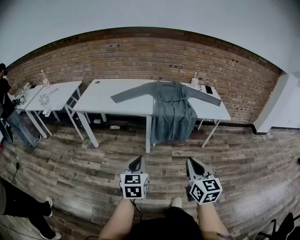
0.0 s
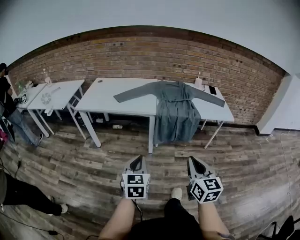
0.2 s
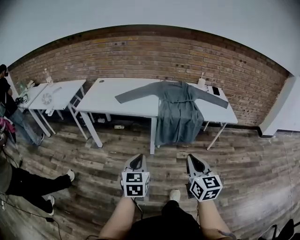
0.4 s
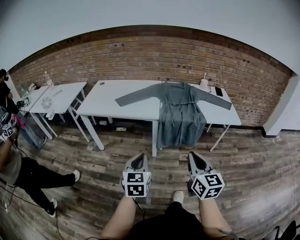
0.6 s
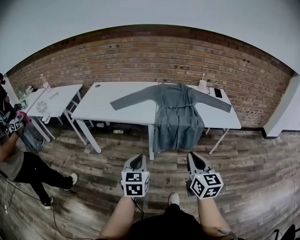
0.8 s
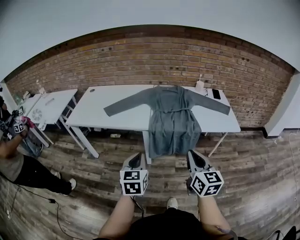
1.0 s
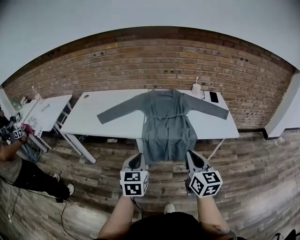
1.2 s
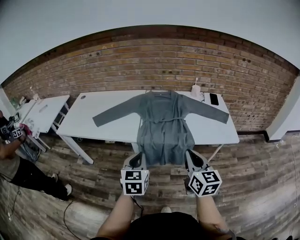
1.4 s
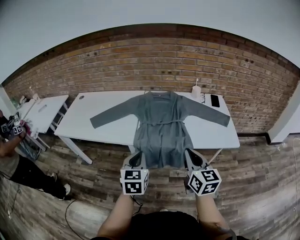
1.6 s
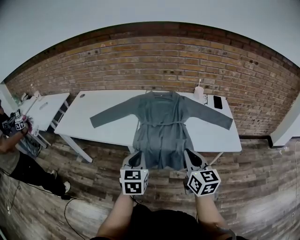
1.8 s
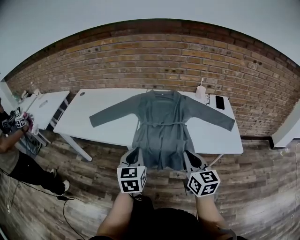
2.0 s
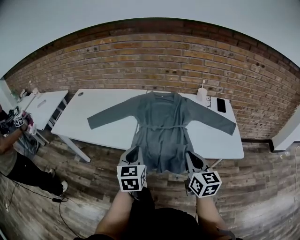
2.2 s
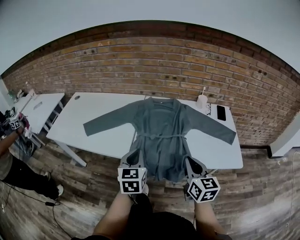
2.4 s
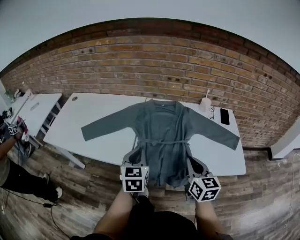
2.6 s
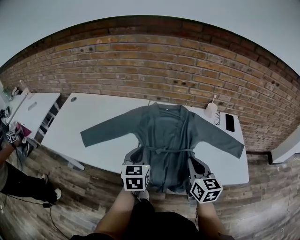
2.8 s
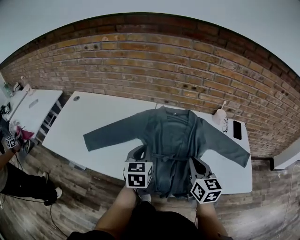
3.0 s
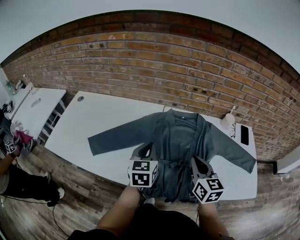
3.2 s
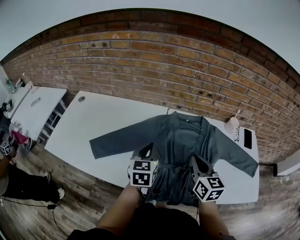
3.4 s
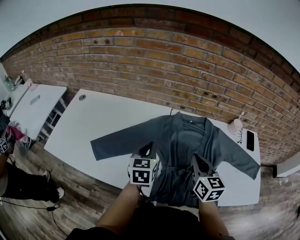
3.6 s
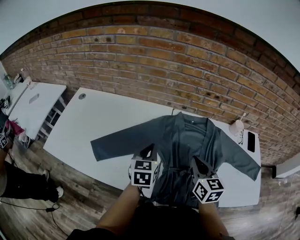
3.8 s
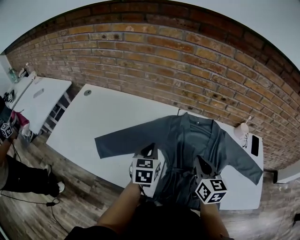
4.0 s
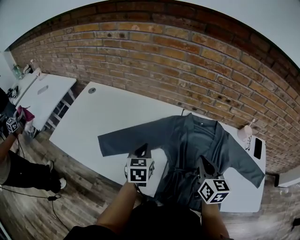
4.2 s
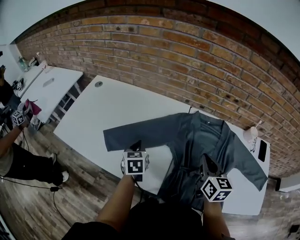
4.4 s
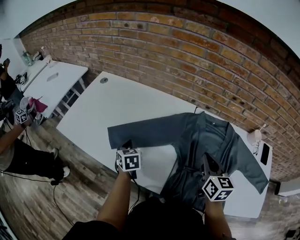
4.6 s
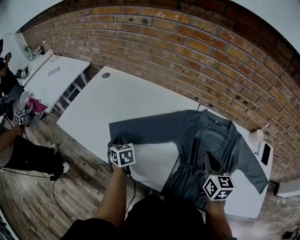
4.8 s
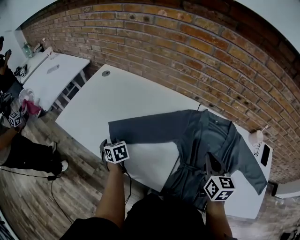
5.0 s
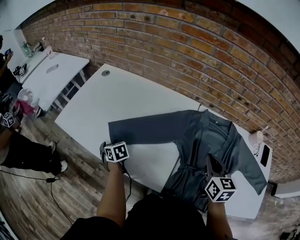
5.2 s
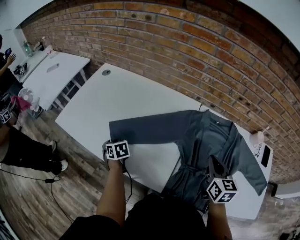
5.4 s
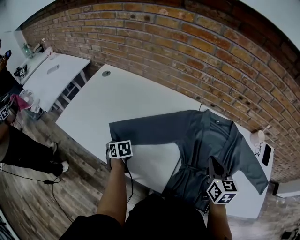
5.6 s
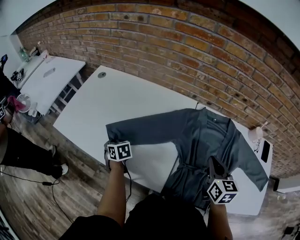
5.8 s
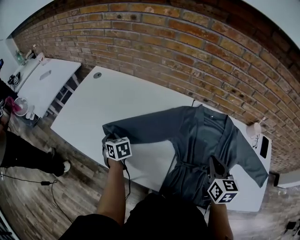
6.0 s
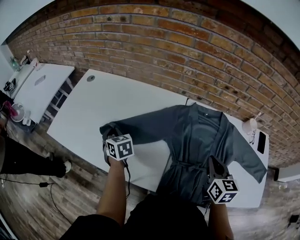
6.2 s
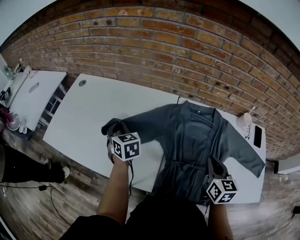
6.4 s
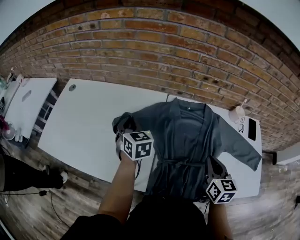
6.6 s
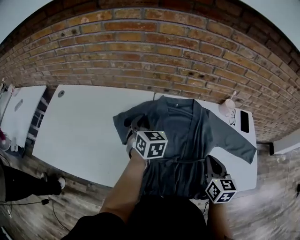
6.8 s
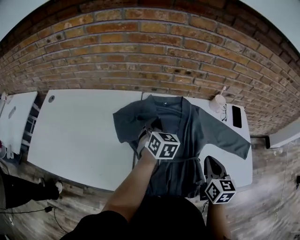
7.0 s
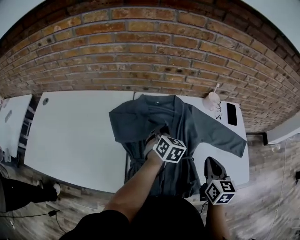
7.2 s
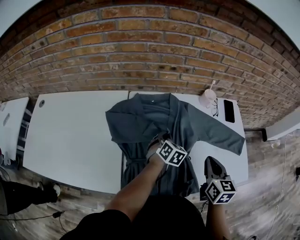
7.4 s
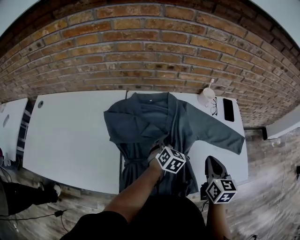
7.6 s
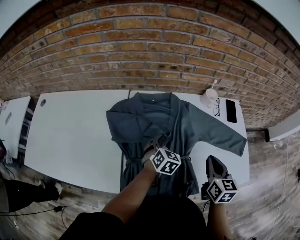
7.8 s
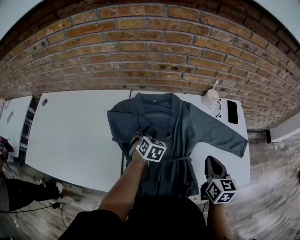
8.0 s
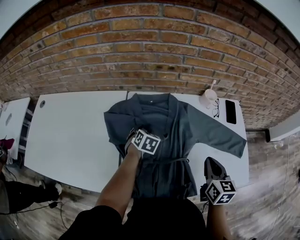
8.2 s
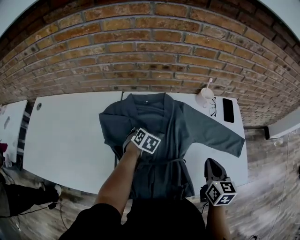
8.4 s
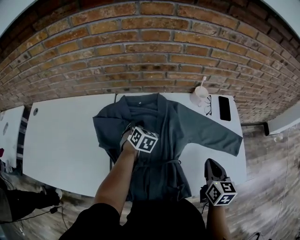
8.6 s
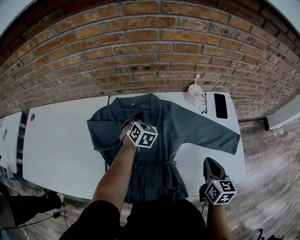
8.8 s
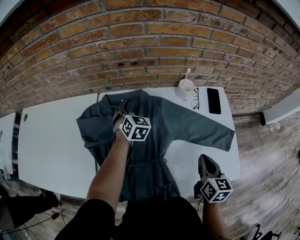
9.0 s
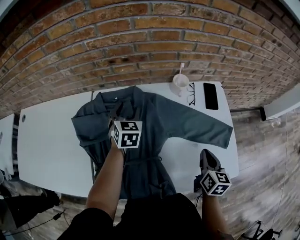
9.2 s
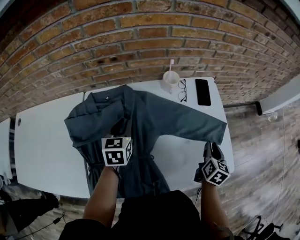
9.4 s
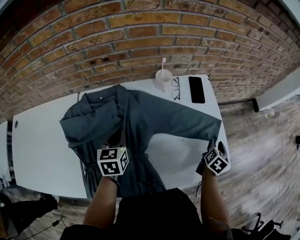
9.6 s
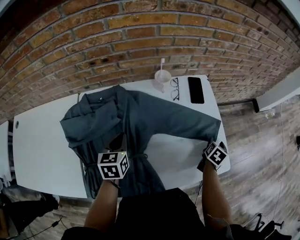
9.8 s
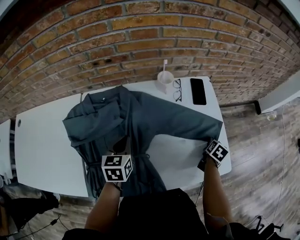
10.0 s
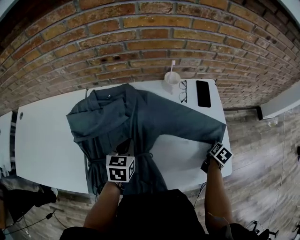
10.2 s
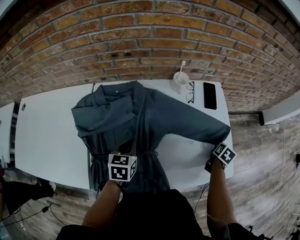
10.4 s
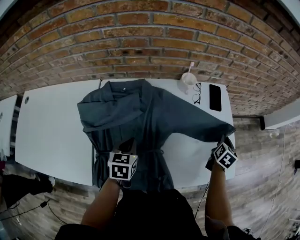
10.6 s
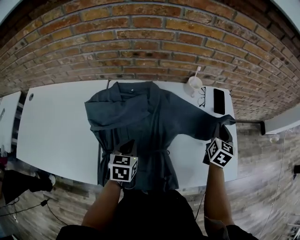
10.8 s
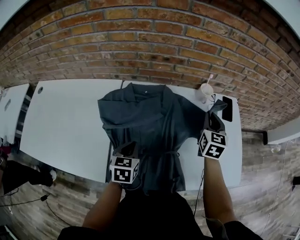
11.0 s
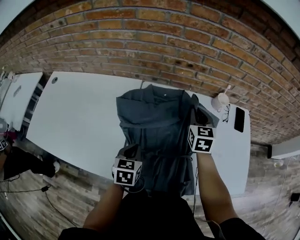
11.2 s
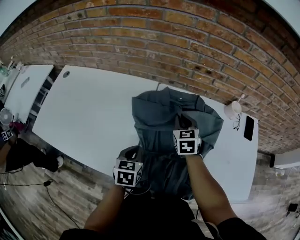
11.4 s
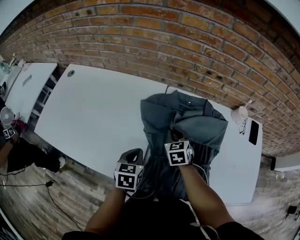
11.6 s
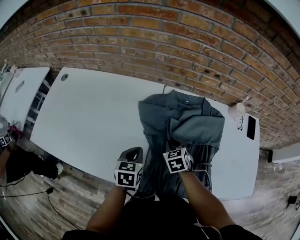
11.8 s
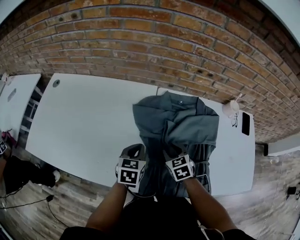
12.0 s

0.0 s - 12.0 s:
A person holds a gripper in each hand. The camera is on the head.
0.0 s - 1.6 s: The grippers both shift forward and to the right by approximately 40 cm.
1.6 s - 3.0 s: Both grippers travel together forward, approximately 30 cm.
3.0 s - 4.4 s: The left gripper moves to the left, downward and forward, approximately 25 cm, and turns by approximately 20 degrees; the right gripper goes roughly 15 cm forward and to the left.
4.4 s - 6.0 s: The left gripper heads to the left, covering approximately 15 cm, rotates approximately 30 degrees, and opens and closes again.
6.0 s - 7.6 s: The left gripper goes upward and returns, approximately 15 cm each way, turns by roughly 70 degrees, and opens its fingers. The right gripper changes place by roughly 25 cm, and turns by about 20 degrees.
7.6 s - 9.0 s: The left gripper shifts some 15 cm forward, turns by about 20 degrees, and closes and opens again; the right gripper moves to the right, some 10 cm.
9.0 s - 10.4 s: The right gripper changes place by some 25 cm, changes its angle by about 40 degrees, and opens, then closes again. Meanwhile the left gripper ends up some 20 cm from where it was, rotates some 30 degrees, and closes its fingers.
10.4 s - 12.0 s: The right gripper goes upward and returns, approximately 20 cm each way, changes its angle by some 80 degrees, and opens. Meanwhile the left gripper shifts by approximately 25 cm.

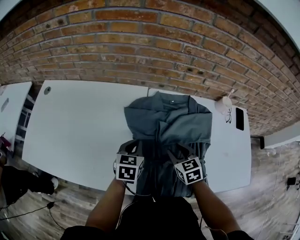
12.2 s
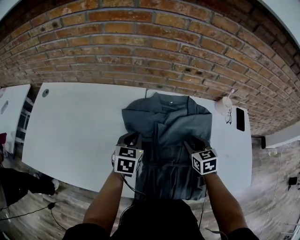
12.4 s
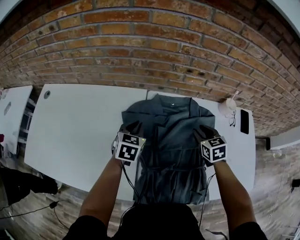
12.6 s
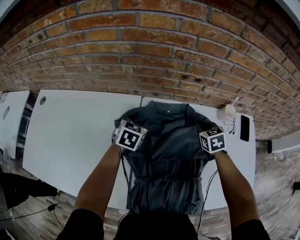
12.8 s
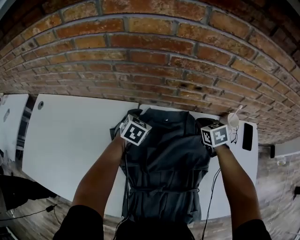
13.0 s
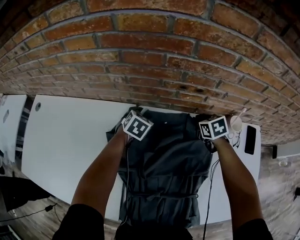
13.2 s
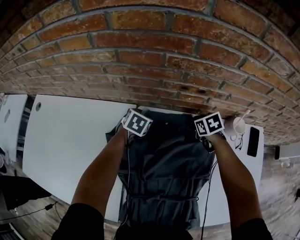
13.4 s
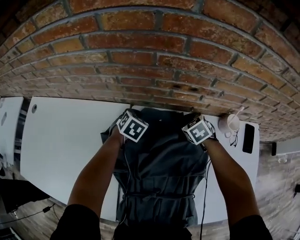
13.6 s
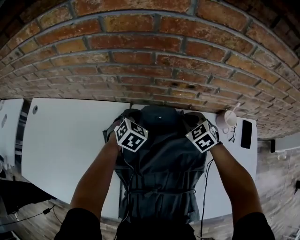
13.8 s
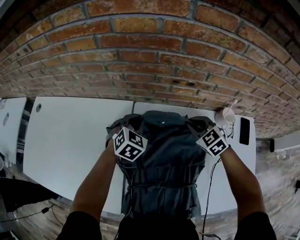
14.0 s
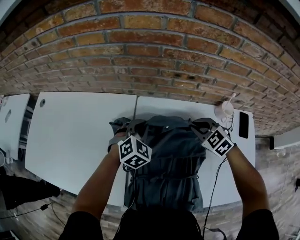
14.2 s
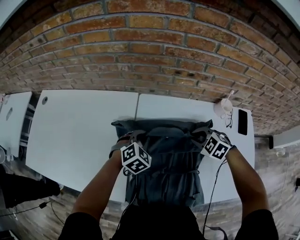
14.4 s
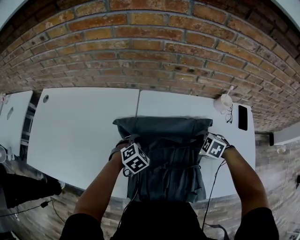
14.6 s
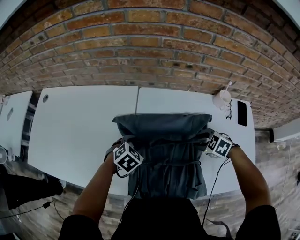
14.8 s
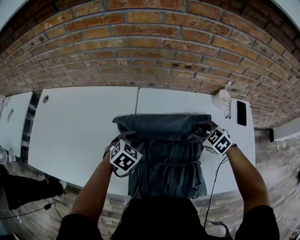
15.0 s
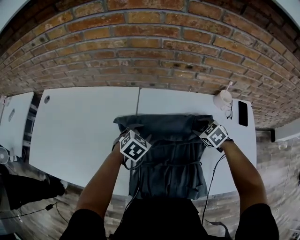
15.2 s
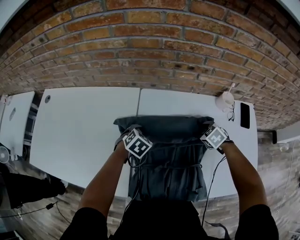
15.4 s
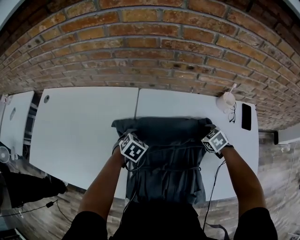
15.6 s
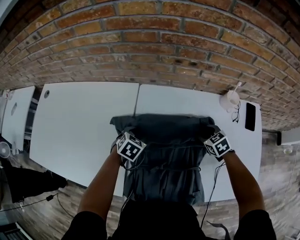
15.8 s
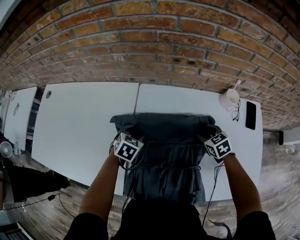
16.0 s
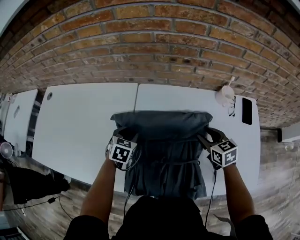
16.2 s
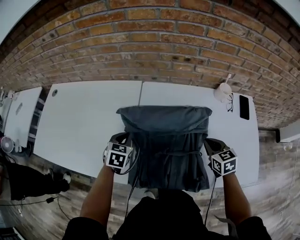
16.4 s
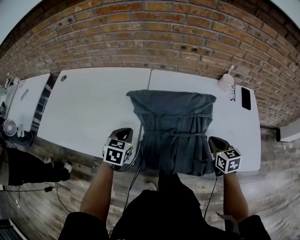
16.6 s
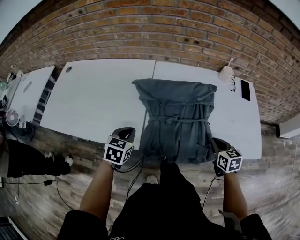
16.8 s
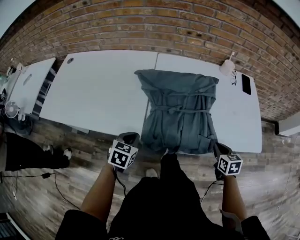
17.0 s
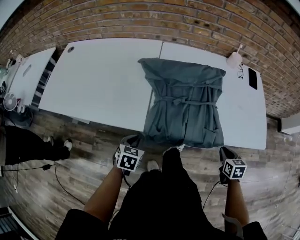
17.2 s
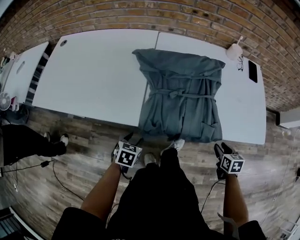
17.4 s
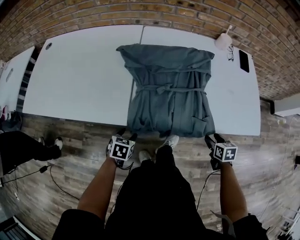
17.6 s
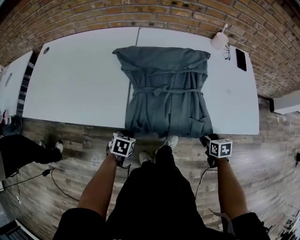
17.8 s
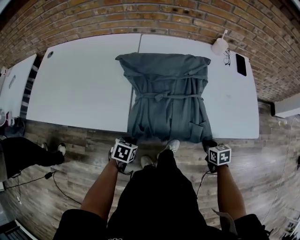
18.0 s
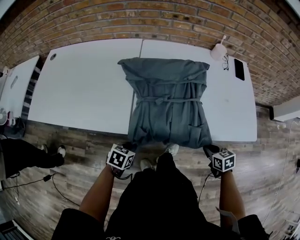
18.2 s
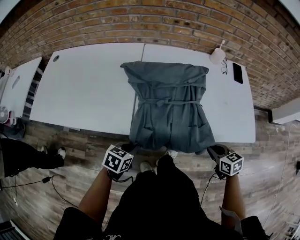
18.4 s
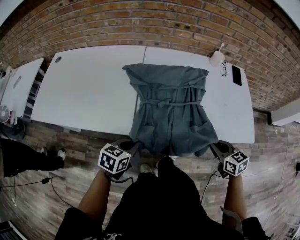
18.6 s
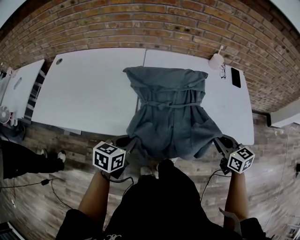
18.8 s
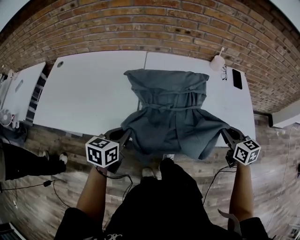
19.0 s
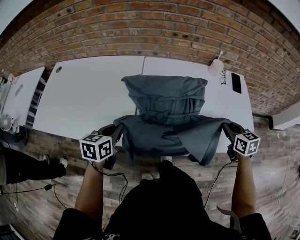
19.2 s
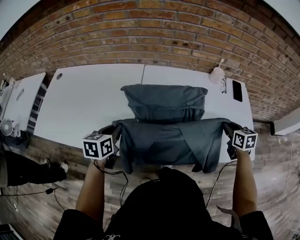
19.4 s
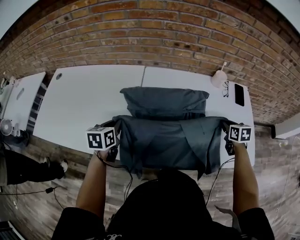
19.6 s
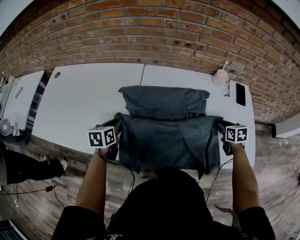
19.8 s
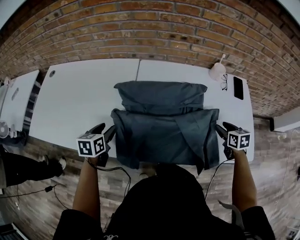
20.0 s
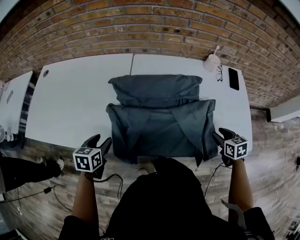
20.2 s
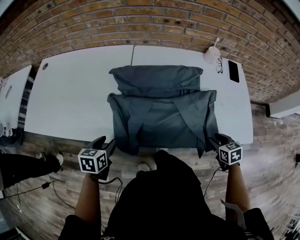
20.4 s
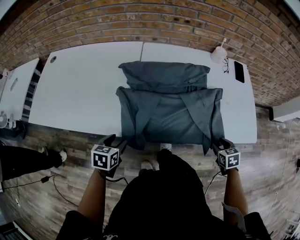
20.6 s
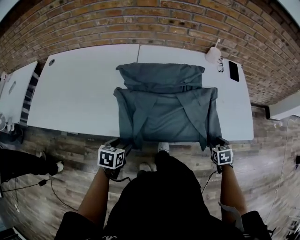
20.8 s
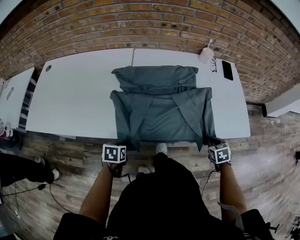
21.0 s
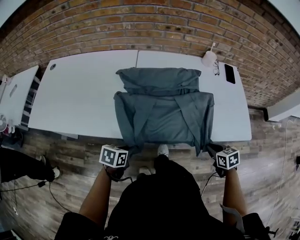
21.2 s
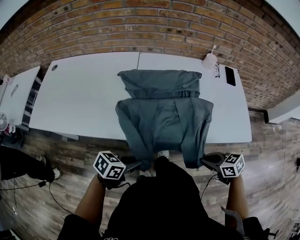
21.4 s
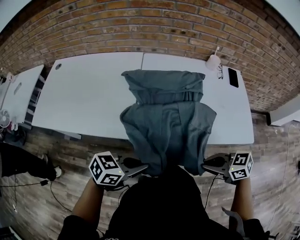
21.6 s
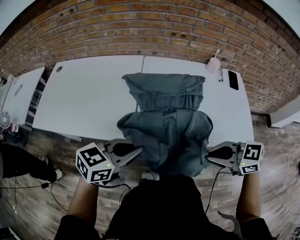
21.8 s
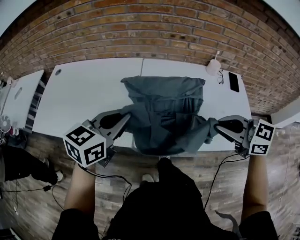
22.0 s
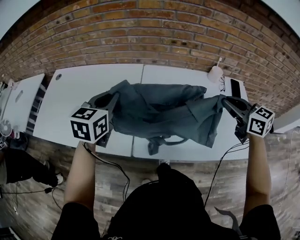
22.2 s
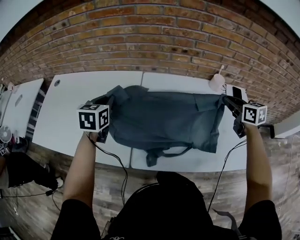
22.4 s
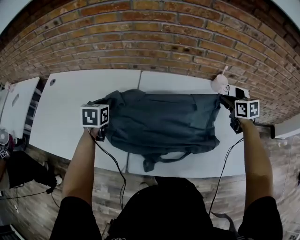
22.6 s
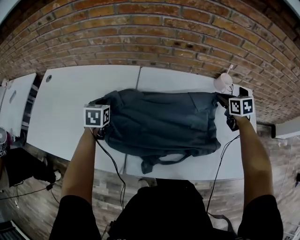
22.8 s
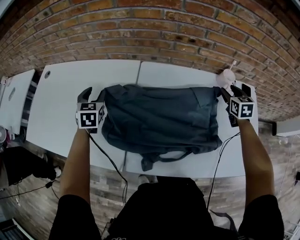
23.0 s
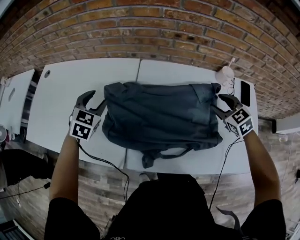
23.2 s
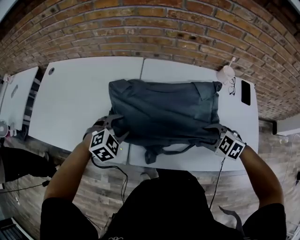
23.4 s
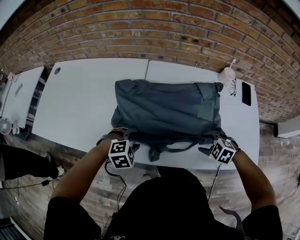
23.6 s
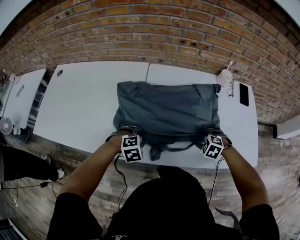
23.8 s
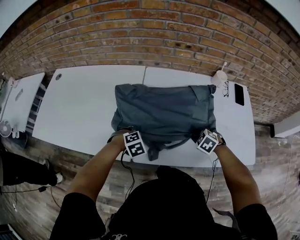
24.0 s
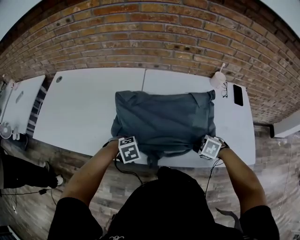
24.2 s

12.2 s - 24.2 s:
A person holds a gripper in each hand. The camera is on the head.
12.2 s - 13.8 s: The right gripper is displaced forward and to the right by some 30 cm, changes its angle by some 20 degrees, and closes up; the left gripper heads forward, covering about 25 cm, turns by roughly 40 degrees, and opens, then closes again.
13.8 s - 15.2 s: The two grippers go some 20 cm backward. The right gripper opens. Meanwhile the left gripper opens its fingers.
15.2 s - 16.6 s: The left gripper is displaced backward and to the left by about 20 cm, turns by roughly 30 degrees, and closes up; the right gripper goes about 20 cm backward, turns by roughly 40 degrees, and closes.
16.6 s - 18.2 s: Both grippers travel together backward and downward, some 25 cm. The right gripper opens, then closes once more, while the left gripper turns by approximately 30 degrees, and opens, then closes once more.
18.2 s - 19.8 s: The left gripper shifts roughly 25 cm forward, upward and to the left, and changes its angle by approximately 30 degrees, while the right gripper travels forward by some 25 cm.
19.8 s - 21.2 s: The left gripper moves backward and to the right, approximately 25 cm, changes its angle by roughly 30 degrees, and opens, then closes again. Meanwhile the right gripper shifts approximately 25 cm backward, and opens, then closes once more.
21.2 s - 22.6 s: The right gripper shifts by some 40 cm. Meanwhile the left gripper moves roughly 40 cm, and swivels some 40 degrees.
22.6 s - 24.2 s: The left gripper goes up and down, some 15 cm each way, reversing 2 times, tilts its fingers some 30 degrees downward, and opens, then closes again. Meanwhile the right gripper shifts by approximately 35 cm, points its fingers some 40 degrees further downward, and opens, then closes again.
